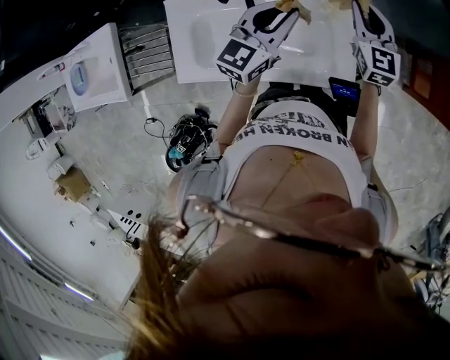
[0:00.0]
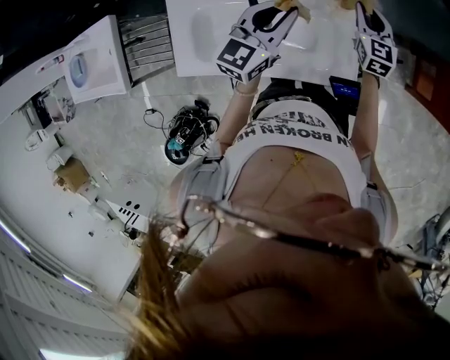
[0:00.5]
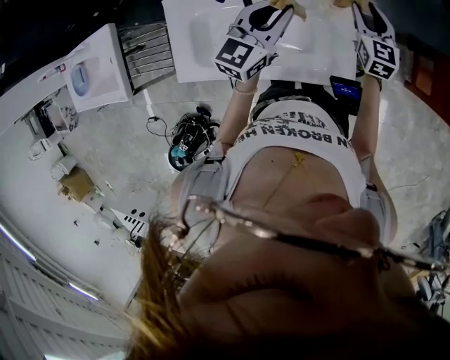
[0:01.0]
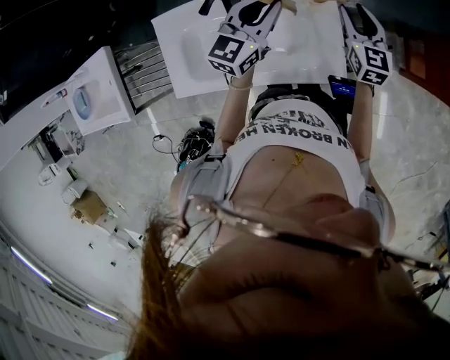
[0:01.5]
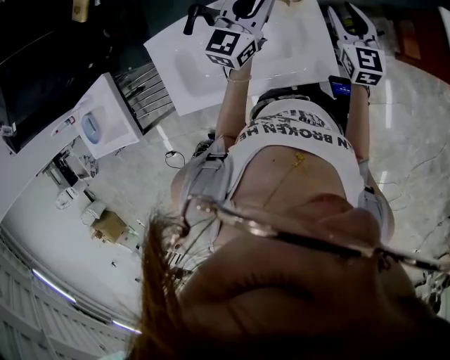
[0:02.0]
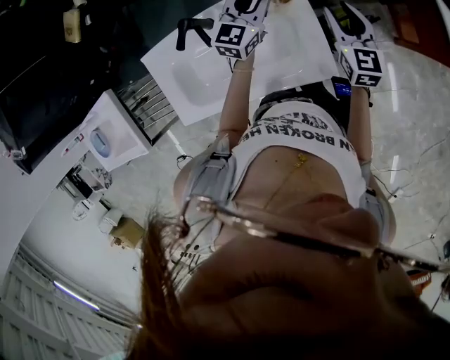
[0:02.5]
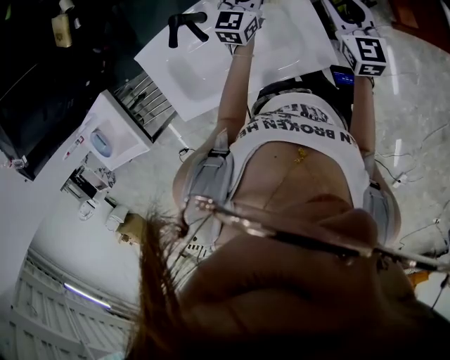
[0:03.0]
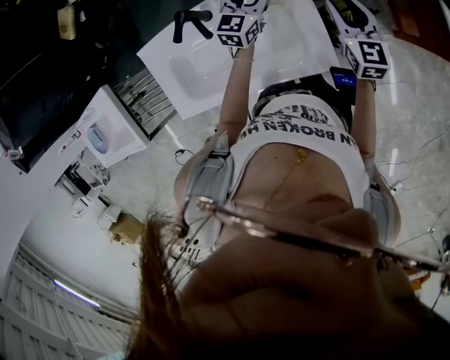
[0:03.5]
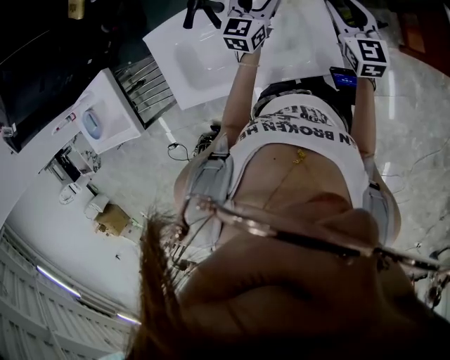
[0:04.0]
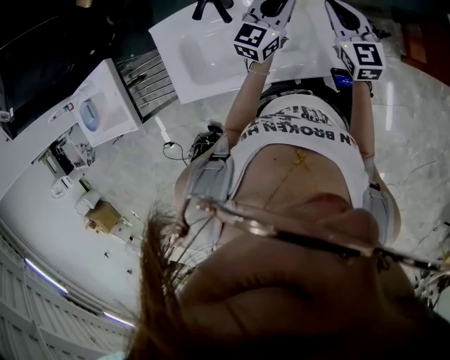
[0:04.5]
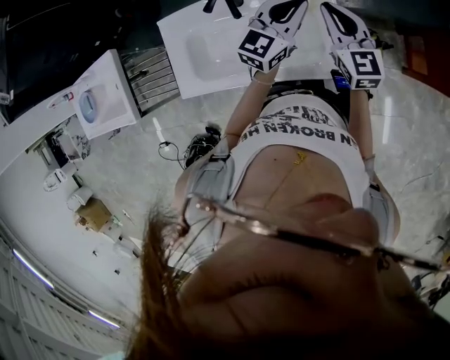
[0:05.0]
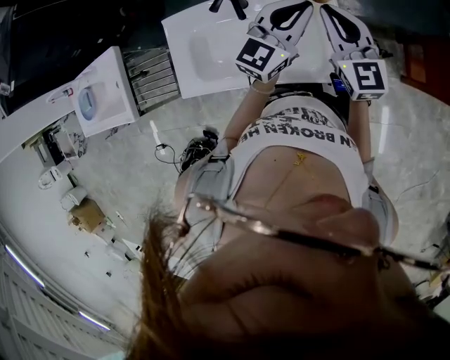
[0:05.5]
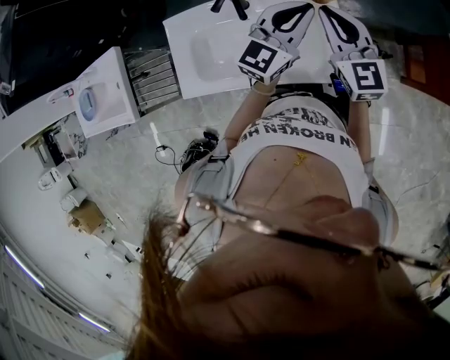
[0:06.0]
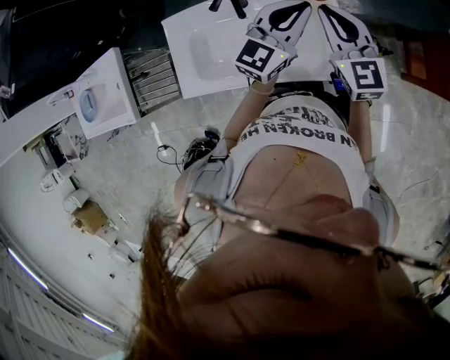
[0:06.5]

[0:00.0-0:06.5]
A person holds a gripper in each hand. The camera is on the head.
0:00.0 to 0:02.0: The left gripper moves forward and to the right, roughly 10 cm. The right gripper is displaced to the right by about 10 cm.
0:02.0 to 0:04.5: The right gripper is displaced to the left by roughly 5 cm, and closes, while the left gripper shifts approximately 5 cm downward, and opens and closes again.
0:04.5 to 0:06.5: The right gripper heads upward, to the left and backward, covering roughly 15 cm. The left gripper goes about 15 cm upward and backward.

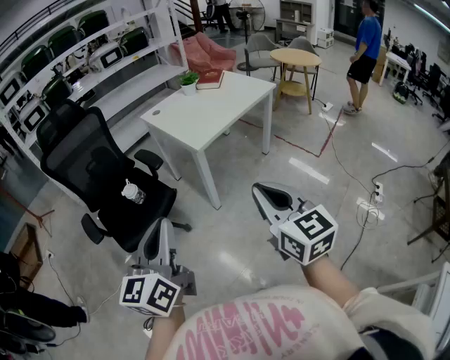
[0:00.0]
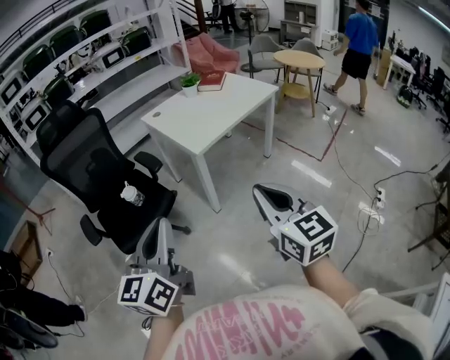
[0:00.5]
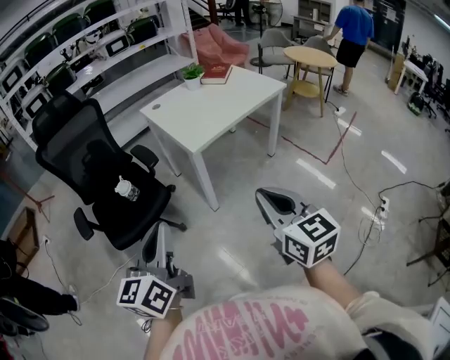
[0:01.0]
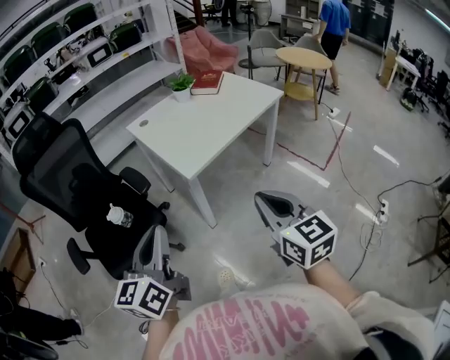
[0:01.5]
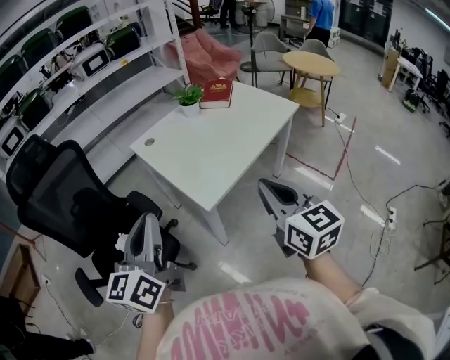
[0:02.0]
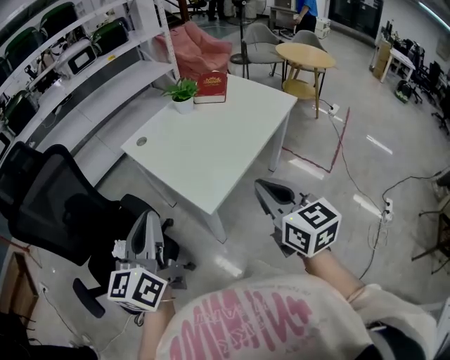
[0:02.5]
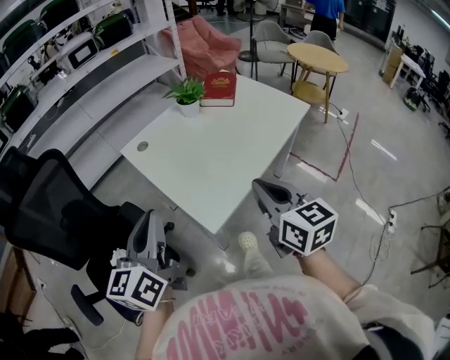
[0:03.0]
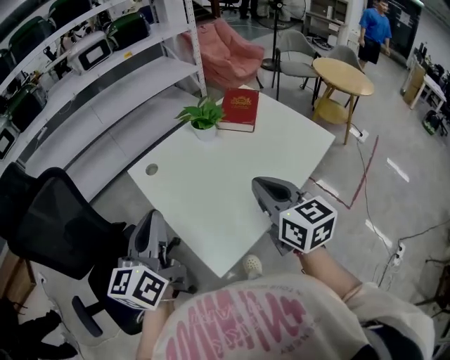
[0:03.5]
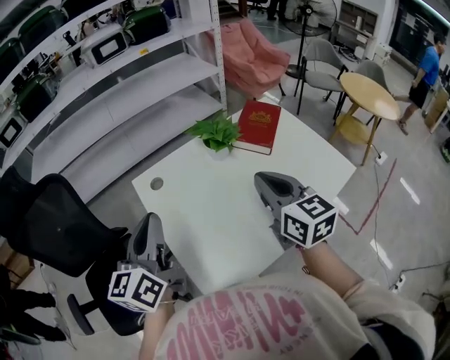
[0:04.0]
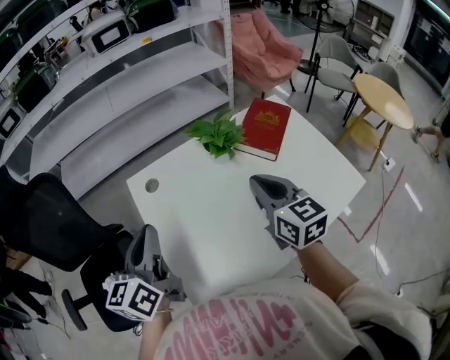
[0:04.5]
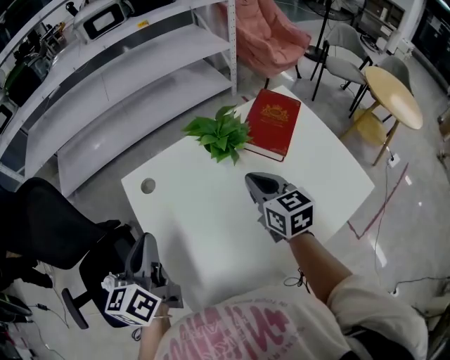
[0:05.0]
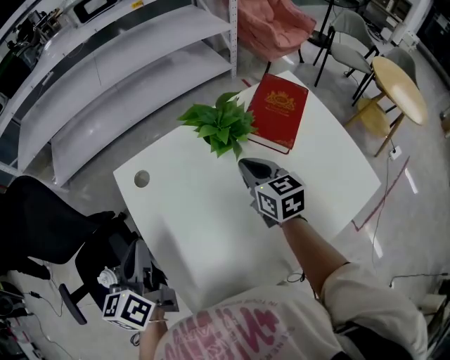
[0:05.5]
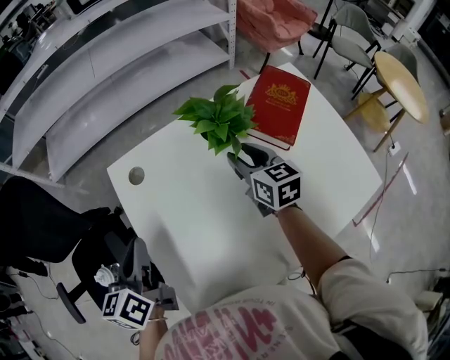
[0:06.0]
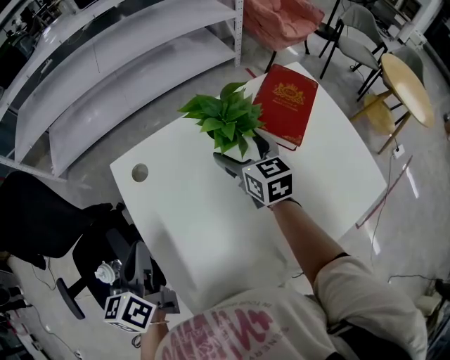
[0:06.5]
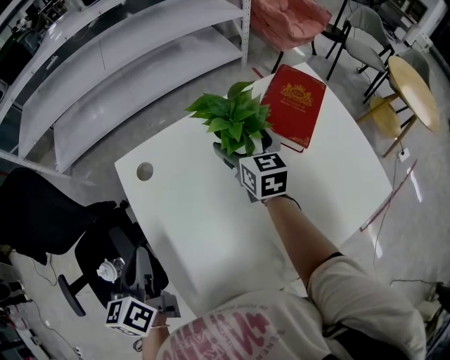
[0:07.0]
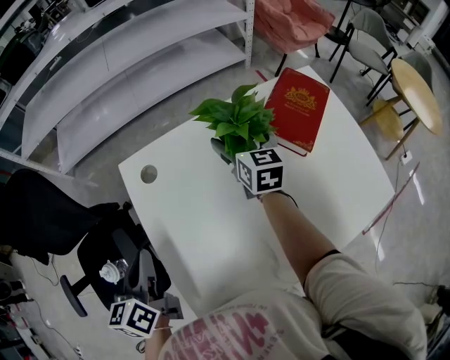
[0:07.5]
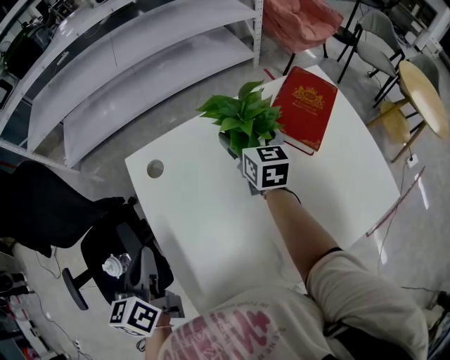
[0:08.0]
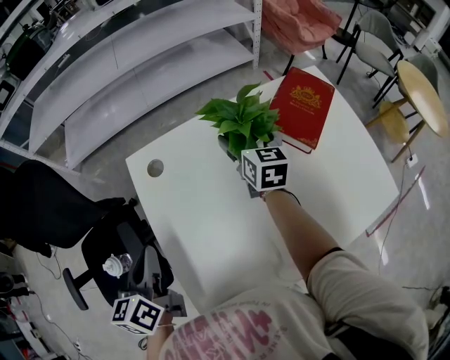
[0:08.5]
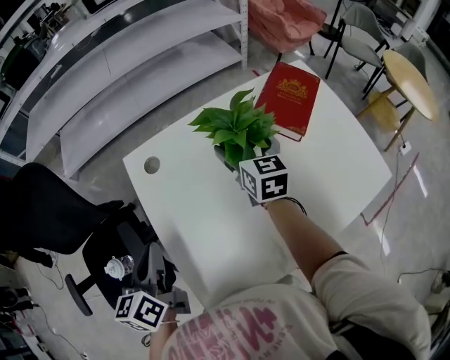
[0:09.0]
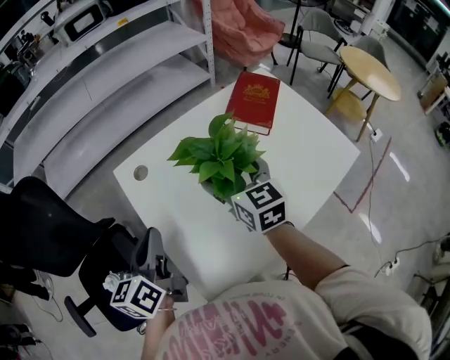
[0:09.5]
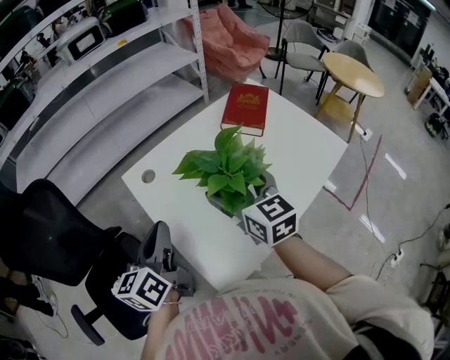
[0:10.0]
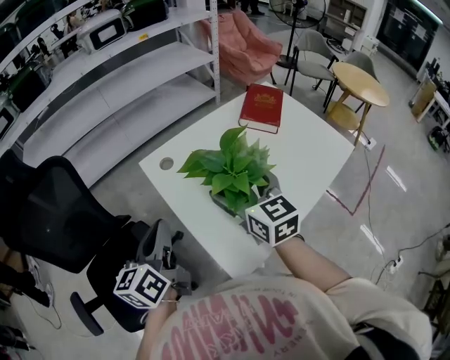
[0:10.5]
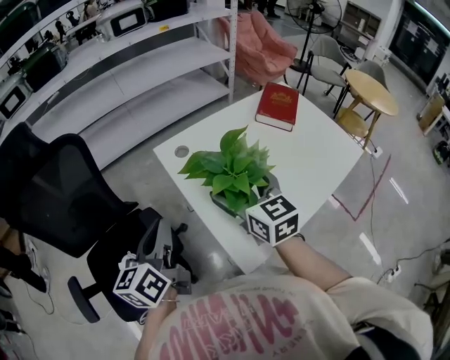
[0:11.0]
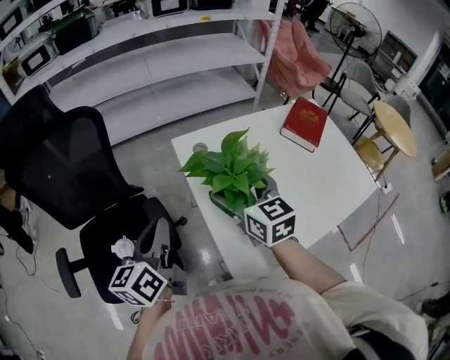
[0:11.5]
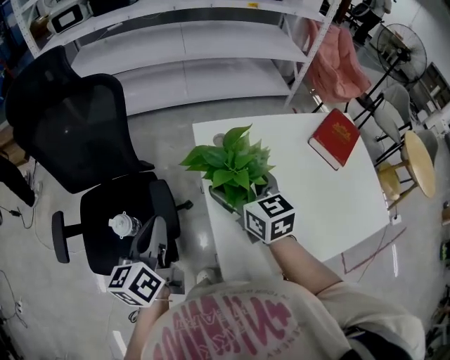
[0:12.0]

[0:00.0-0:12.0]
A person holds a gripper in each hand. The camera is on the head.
0:00.0 to 0:02.0: The two grippers go approximately 35 cm forward.
0:02.0 to 0:04.0: Both grippers travel together forward, some 40 cm.
0:04.0 to 0:06.0: The right gripper is displaced forward and downward by about 30 cm. The left gripper heads downward and forward, covering roughly 15 cm, and swivels about 30 degrees.
0:06.0 to 0:08.0: The right gripper is displaced forward by approximately 10 cm, and opens.
0:08.0 to 0:10.0: The right gripper moves backward and upward, some 30 cm, while the left gripper heads upward, covering approximately 5 cm, and changes its angle by about 30 degrees.
0:10.0 to 0:12.0: The left gripper changes place by some 15 cm, and rotates some 30 degrees. The right gripper moves approximately 20 cm, and rotates some 30 degrees.

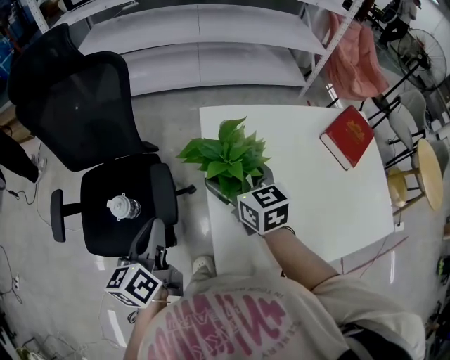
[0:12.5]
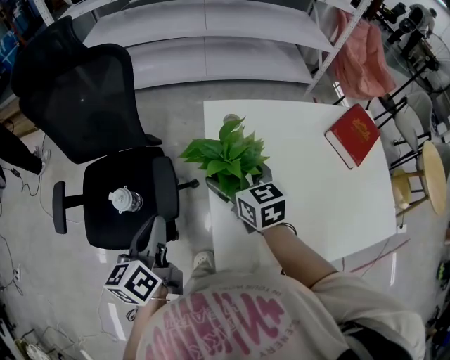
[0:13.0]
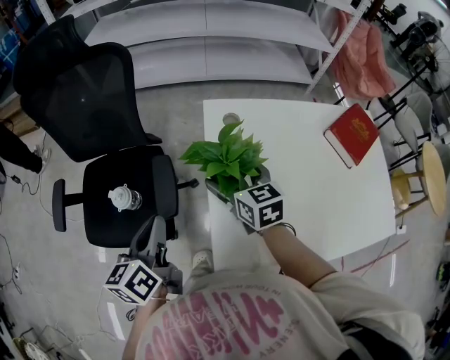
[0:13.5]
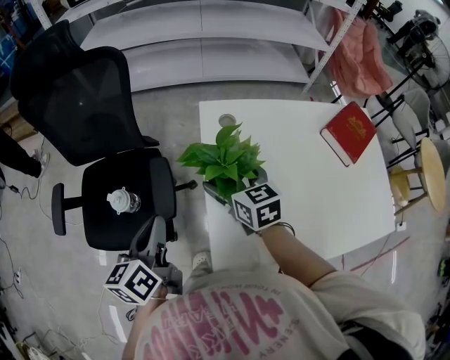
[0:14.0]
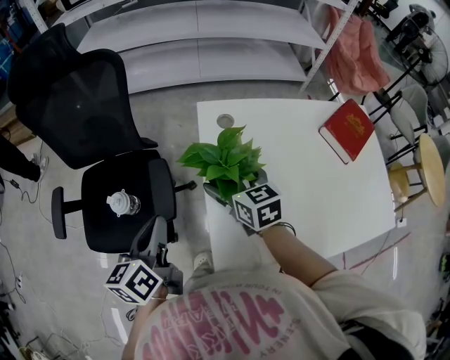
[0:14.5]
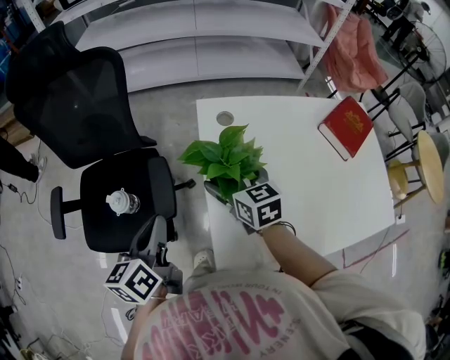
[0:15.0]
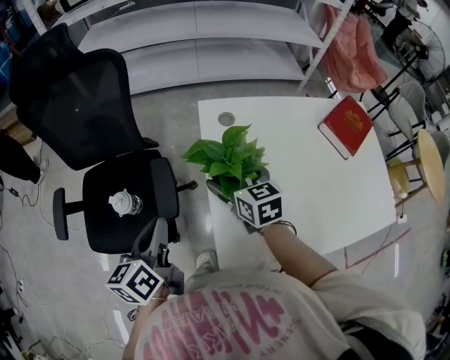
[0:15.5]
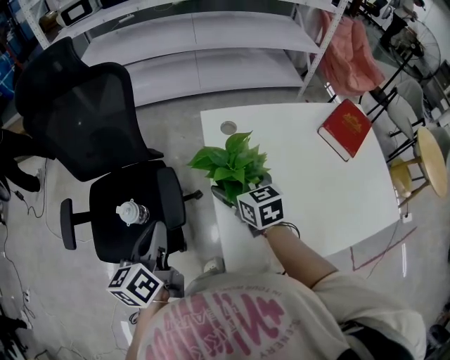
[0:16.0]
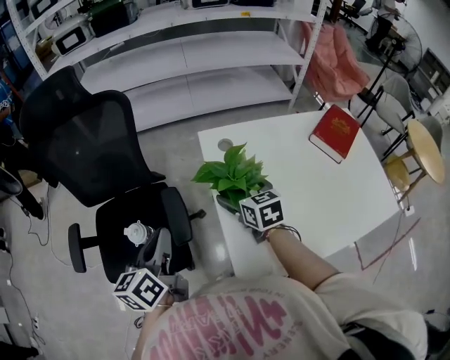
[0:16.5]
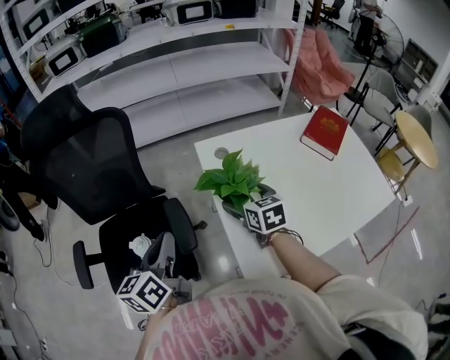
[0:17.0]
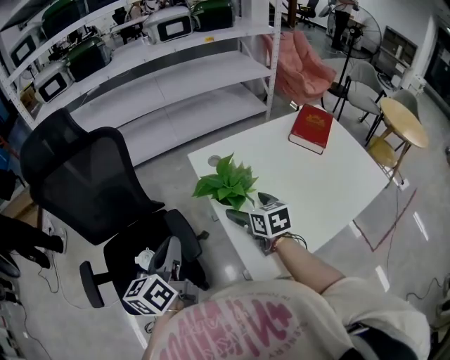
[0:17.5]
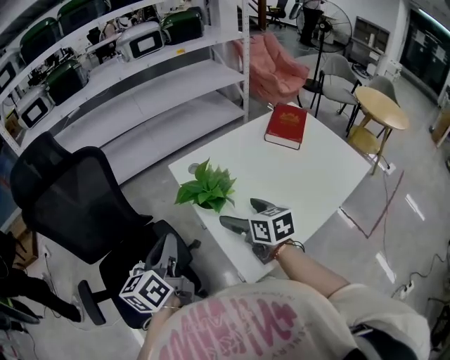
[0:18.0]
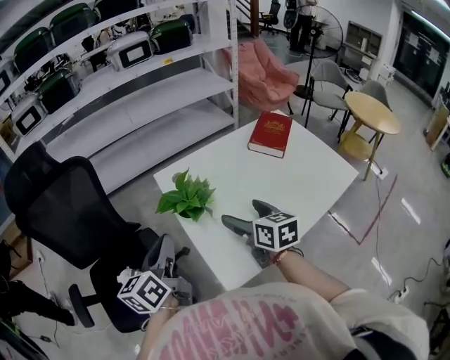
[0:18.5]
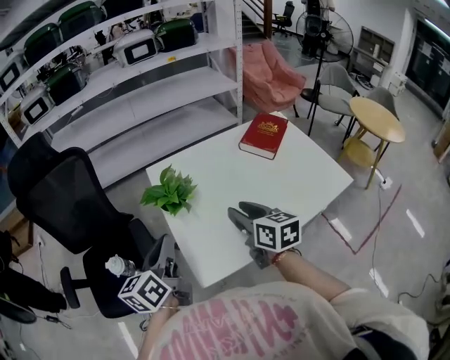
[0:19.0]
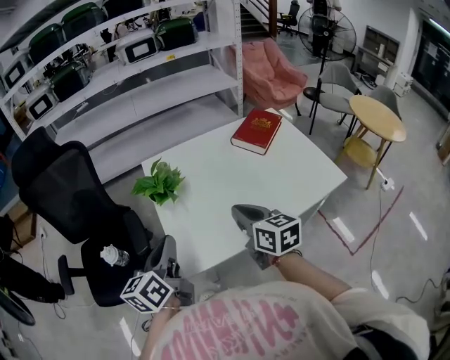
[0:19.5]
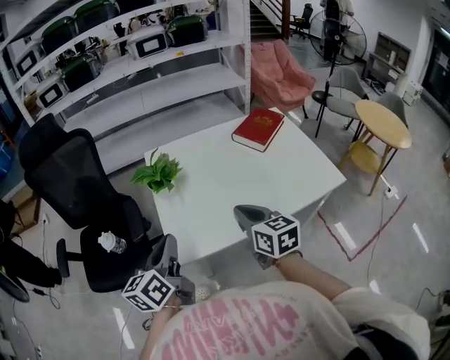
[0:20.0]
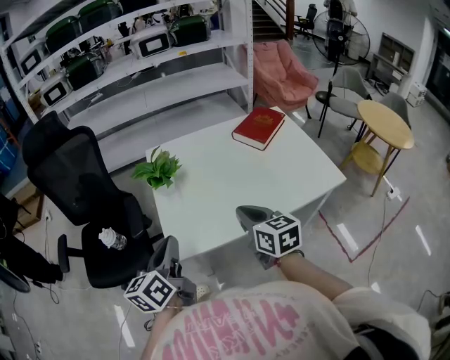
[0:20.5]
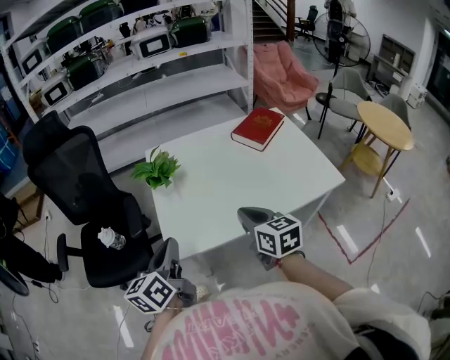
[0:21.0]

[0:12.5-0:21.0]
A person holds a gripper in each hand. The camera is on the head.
0:12.5 to 0:14.5: The grippers make only small movements.
0:14.5 to 0:16.5: The left gripper shifts by approximately 5 cm.
0:16.5 to 0:19.0: The right gripper moves to the right, backward and upward, some 25 cm, rotates about 20 degrees, and closes; the left gripper goes some 15 cm to the right.
0:19.0 to 0:21.0: Both grippers move backward and to the right, roughly 15 cm.
